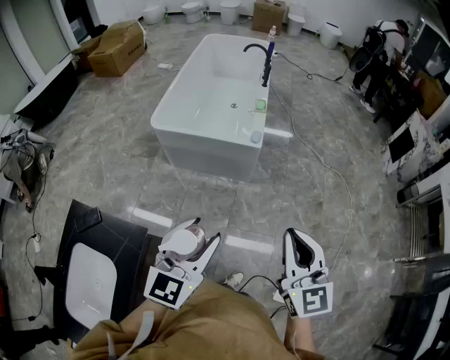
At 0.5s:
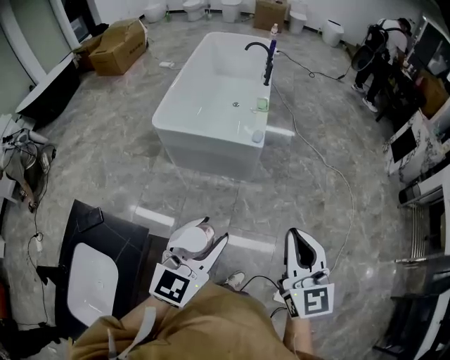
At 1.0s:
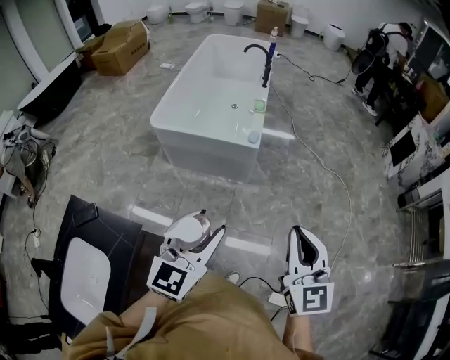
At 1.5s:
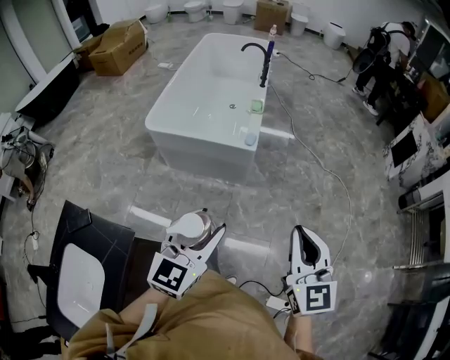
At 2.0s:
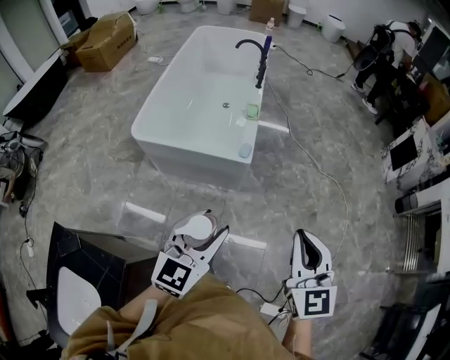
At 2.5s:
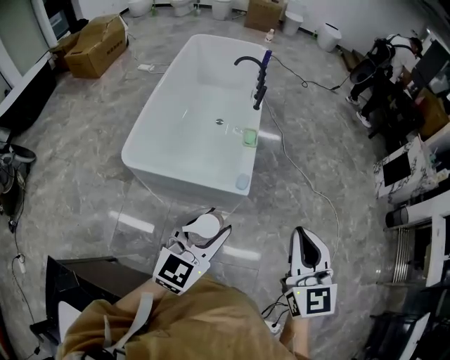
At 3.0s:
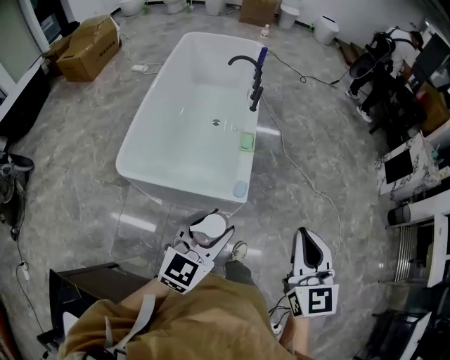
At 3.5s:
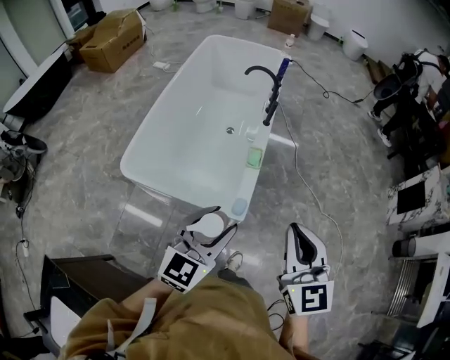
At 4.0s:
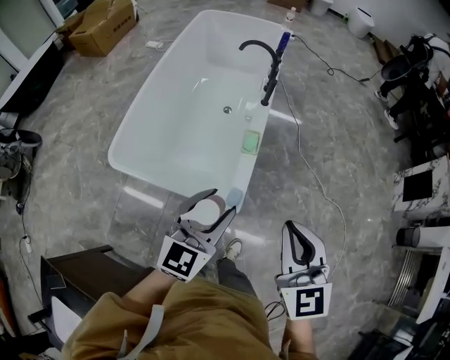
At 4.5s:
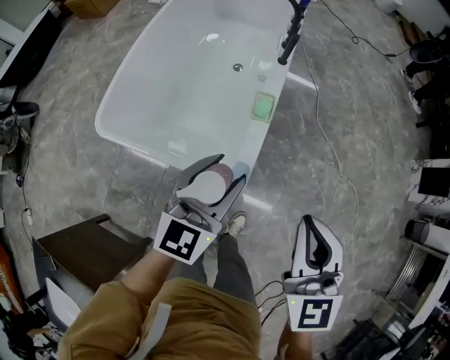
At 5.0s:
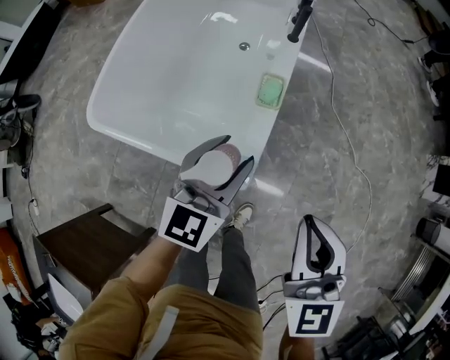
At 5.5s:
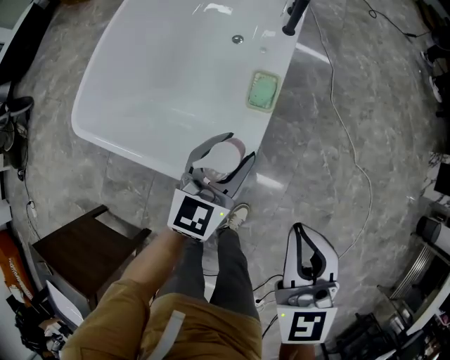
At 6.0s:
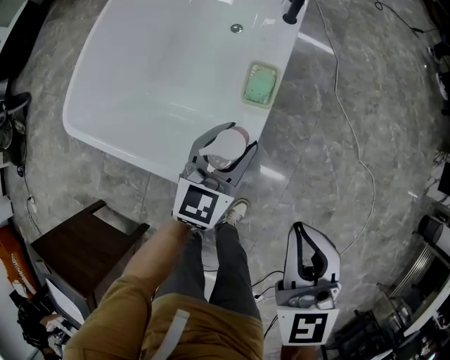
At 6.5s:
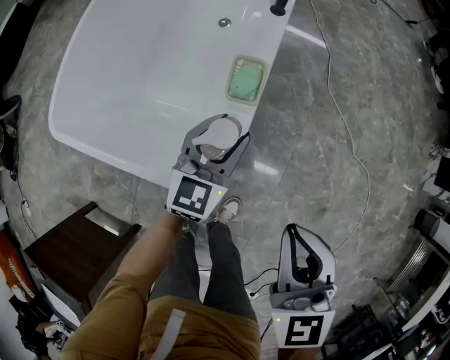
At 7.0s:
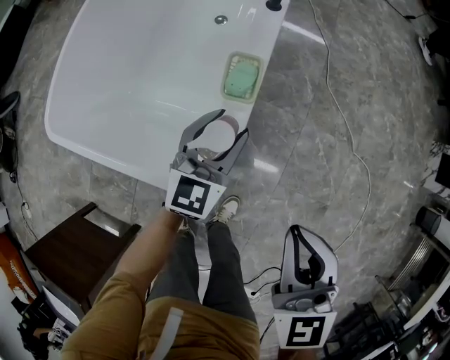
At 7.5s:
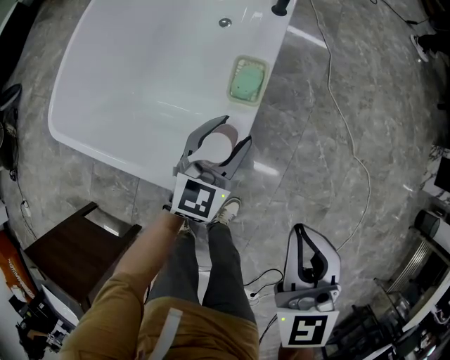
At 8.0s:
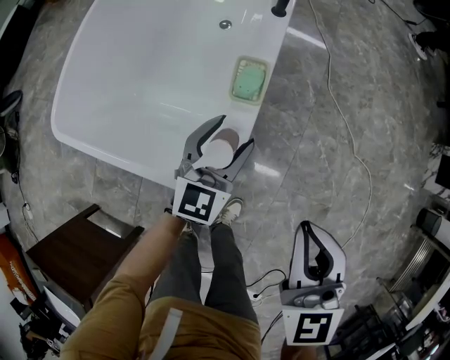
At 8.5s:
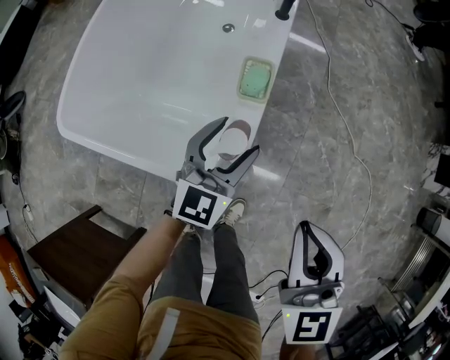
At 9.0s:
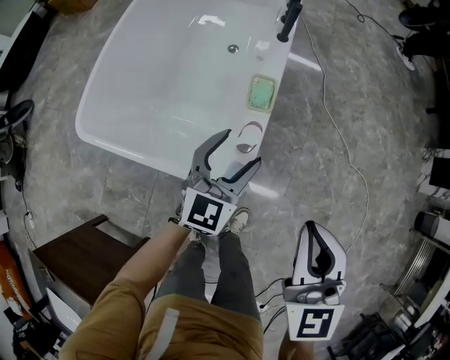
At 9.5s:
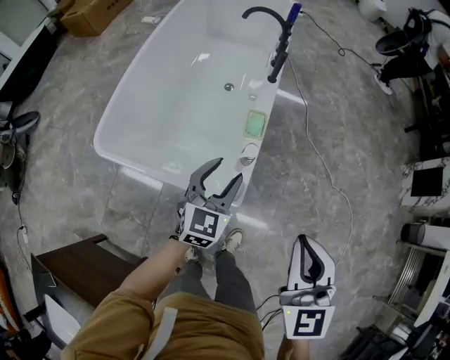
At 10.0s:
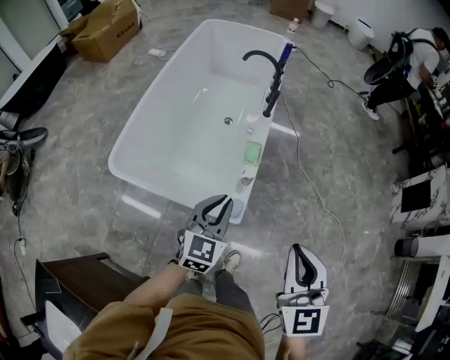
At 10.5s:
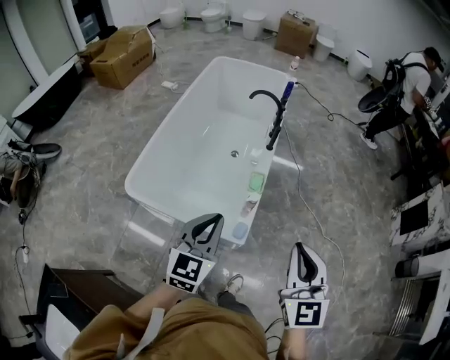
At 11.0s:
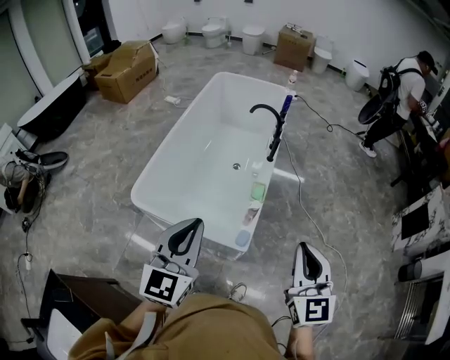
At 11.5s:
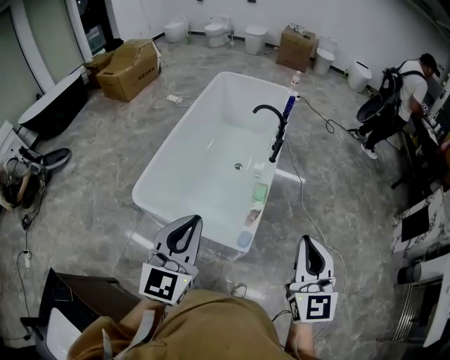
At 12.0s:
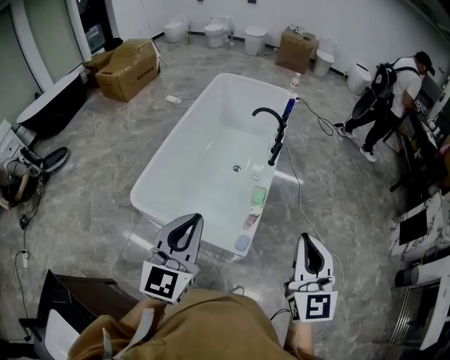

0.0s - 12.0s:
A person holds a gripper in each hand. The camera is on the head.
0.0s - 2.0s: The two grippers go approximately 20 cm forward.
2.0s - 4.0s: Both grippers move forward, approximately 40 cm.
4.0s - 6.0s: Both grippers travel together downward and forward, roughly 30 cm.
6.0s - 8.0s: The grippers stay close to where they were, moving slightly.
8.0s - 10.0s: Both grippers travel together upward and backward, roughly 30 cm. The left gripper closes up.
10.0s - 12.0s: The left gripper heads upward and to the left, covering some 25 cm, while the right gripper travels upward by some 10 cm.

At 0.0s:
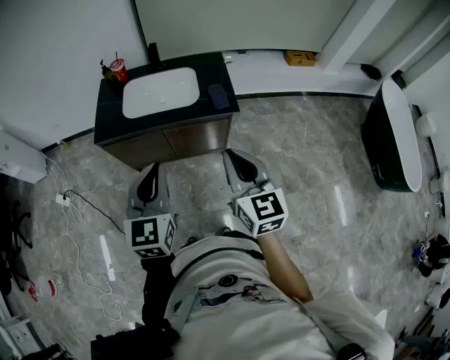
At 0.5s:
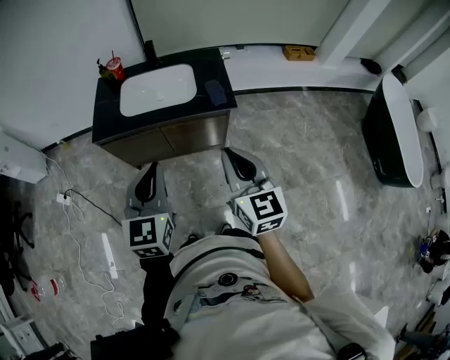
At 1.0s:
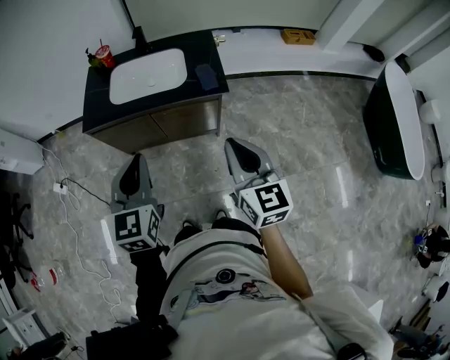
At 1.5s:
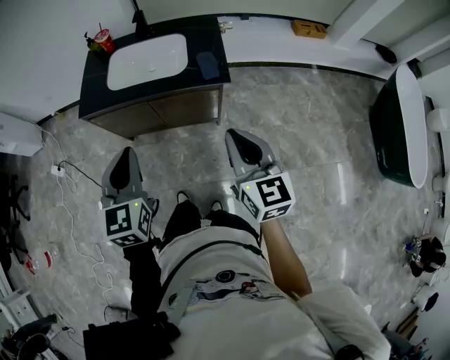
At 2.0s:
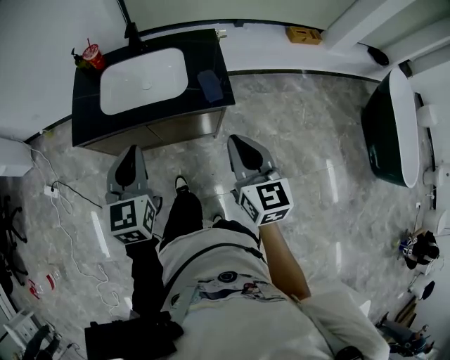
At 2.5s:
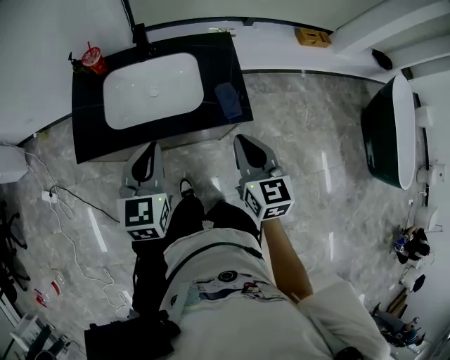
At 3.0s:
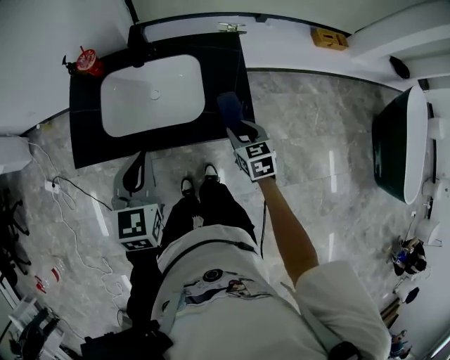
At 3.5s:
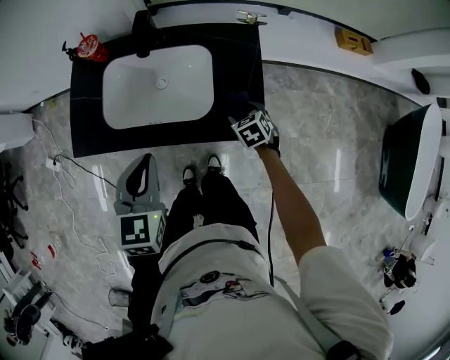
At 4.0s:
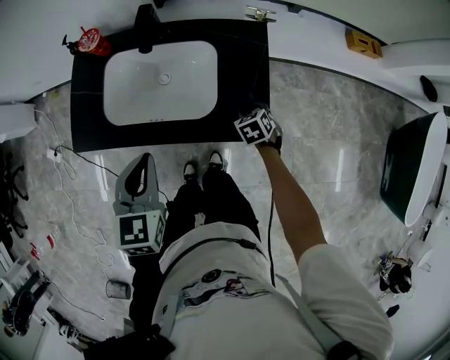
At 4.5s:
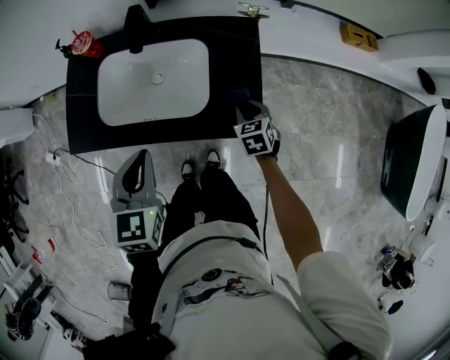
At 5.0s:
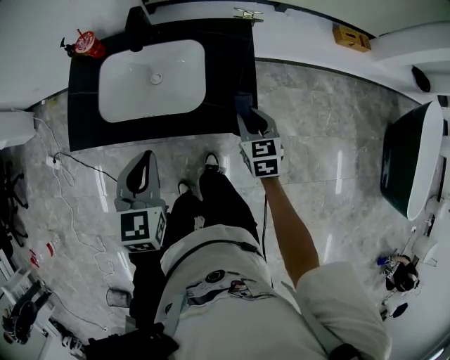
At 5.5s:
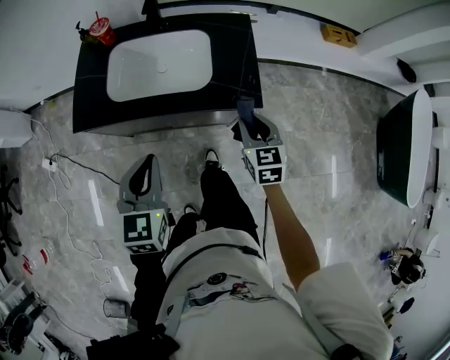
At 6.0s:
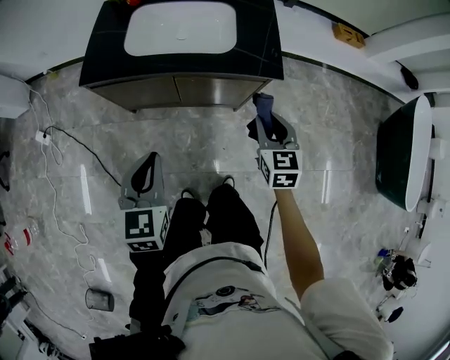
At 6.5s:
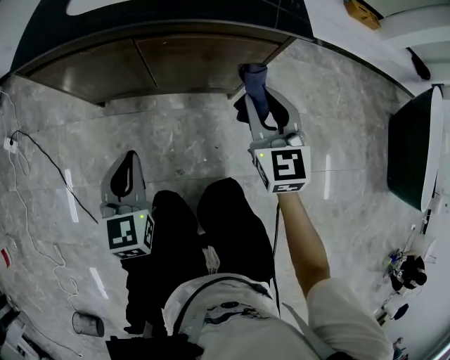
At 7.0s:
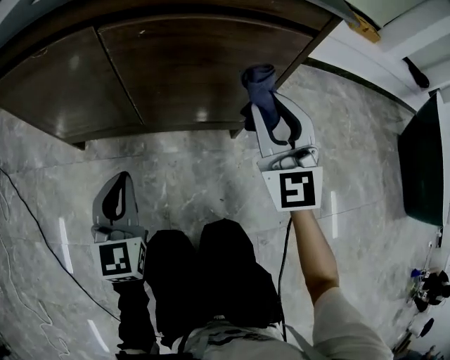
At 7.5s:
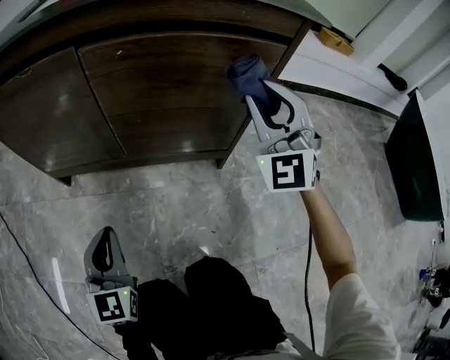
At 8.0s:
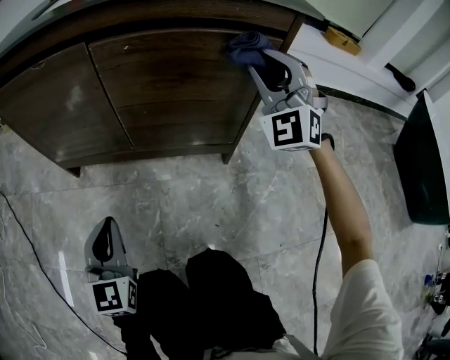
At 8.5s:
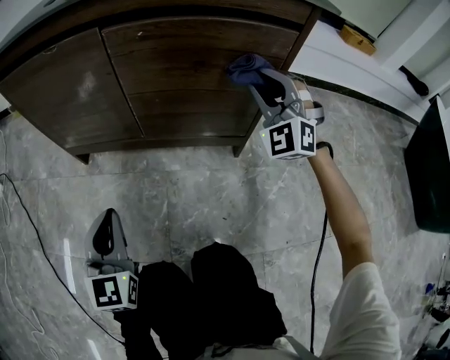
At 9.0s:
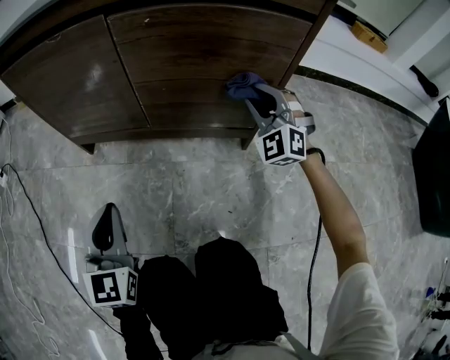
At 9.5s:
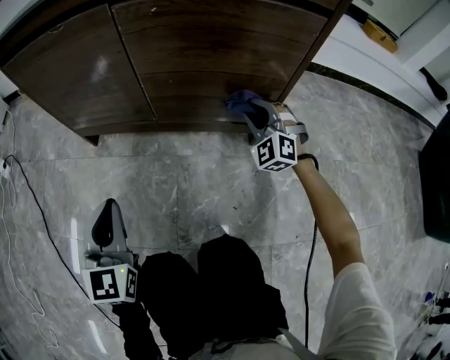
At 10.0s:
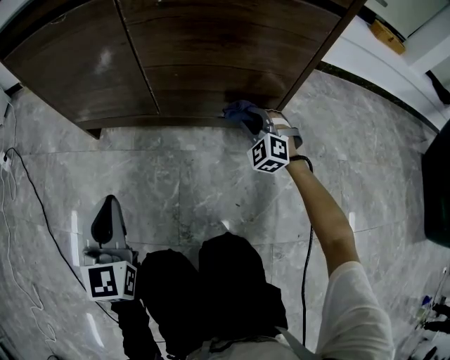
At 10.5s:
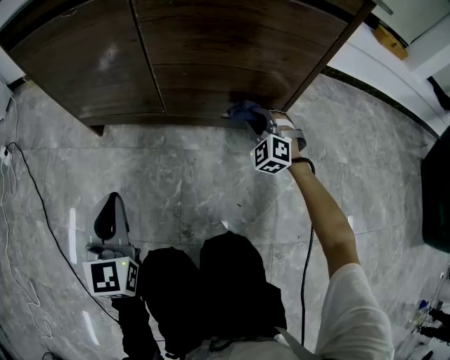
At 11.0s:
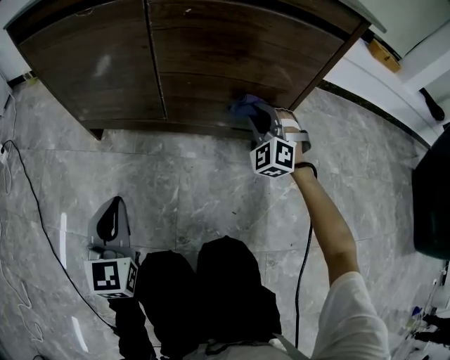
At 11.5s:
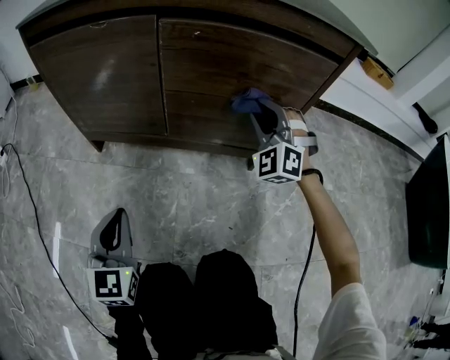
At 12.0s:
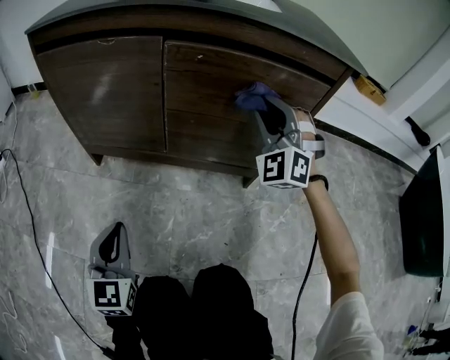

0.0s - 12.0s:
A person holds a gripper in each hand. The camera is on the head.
0.0s - 2.0s: The right gripper goes some 15 cm forward, downward and to the right; the left gripper moves forward and downward, about 15 cm.
2.0s - 4.0s: The right gripper moves downward and forward, about 50 cm, tilts its fingers approximately 50 degrees downward, and opens its fingers; the left gripper heads forward and downward, covering about 20 cm.
4.0s - 6.0s: The right gripper is displaced backward and upward by some 30 cm, and points its fingers roughly 30 degrees further upward; the left gripper is displaced backward by some 25 cm.
6.0s - 8.0s: The left gripper goes approximately 50 cm downward, and changes its angle by about 20 degrees, while the right gripper goes approximately 30 cm downward and forward, and twists some 60 degrees counterclockwise, seen from behind.
8.0s - 10.0s: The right gripper heads downward, covering roughly 35 cm, and angles its fingers downward, by roughly 30 degrees.
10.0s - 12.0s: The right gripper heads upward, covering approximately 30 cm, and changes its angle by some 30 degrees.

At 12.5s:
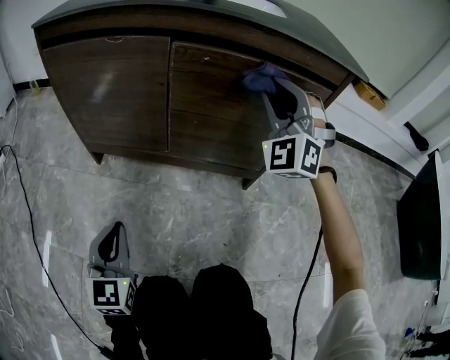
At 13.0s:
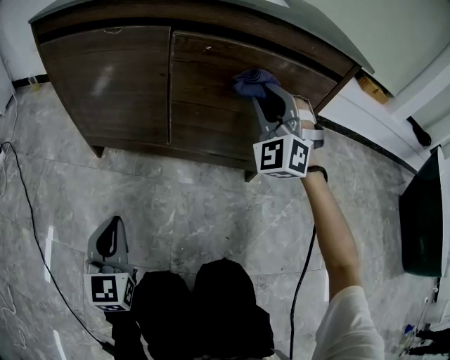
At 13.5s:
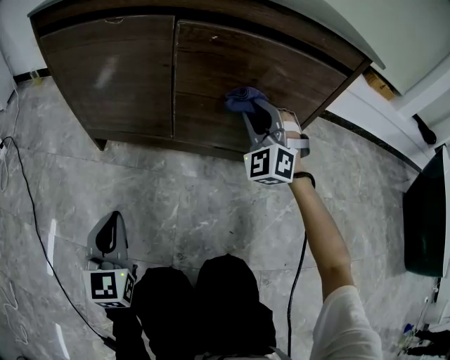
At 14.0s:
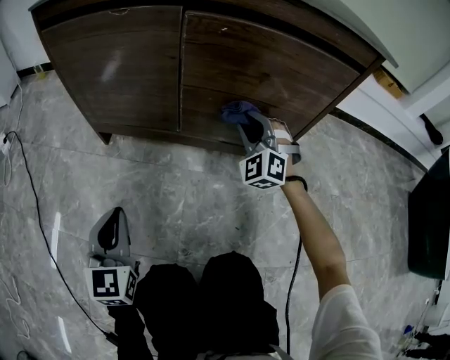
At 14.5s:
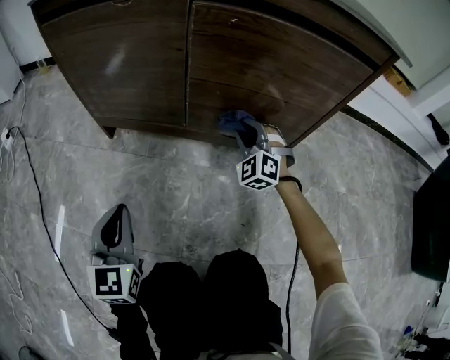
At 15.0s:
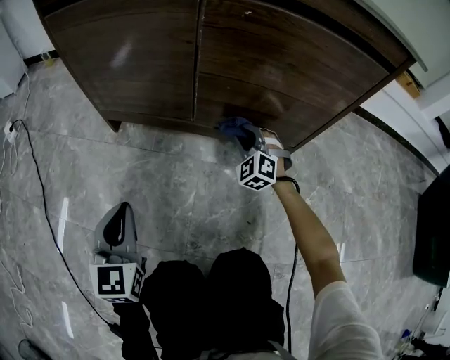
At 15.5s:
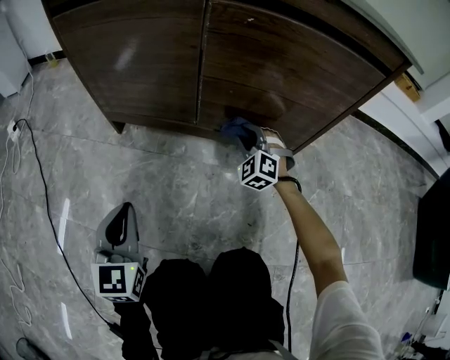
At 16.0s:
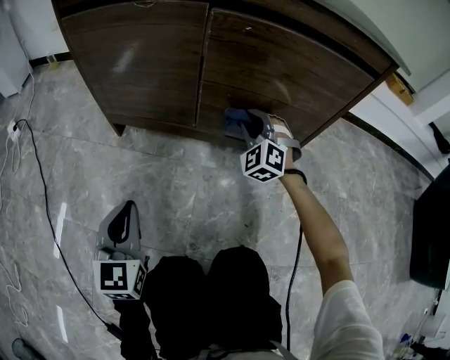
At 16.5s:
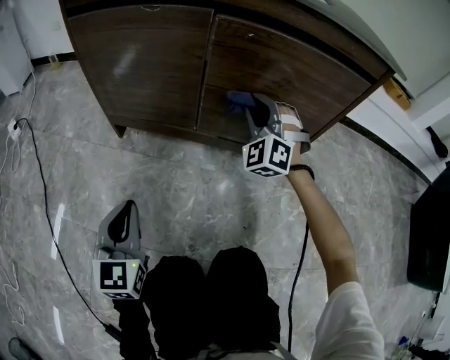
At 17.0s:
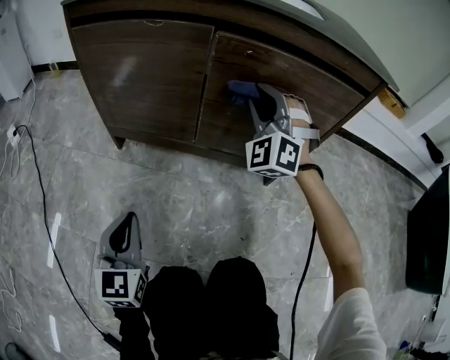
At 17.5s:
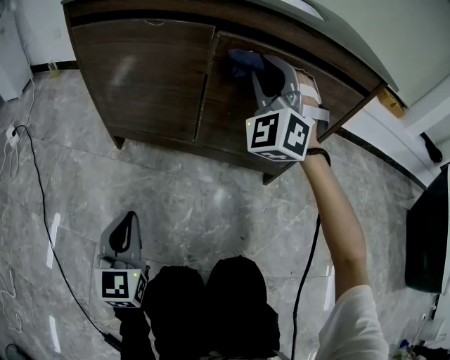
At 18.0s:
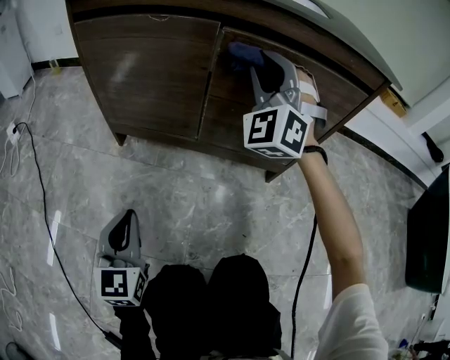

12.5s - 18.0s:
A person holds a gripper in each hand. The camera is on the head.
12.5s - 14.5s: The right gripper shifts roughly 30 cm downward, and turns by some 30 degrees.
14.5s - 16.0s: The right gripper changes place by approximately 5 cm.
16.0s - 18.0s: The right gripper shifts roughly 25 cm upward, and rotates approximately 30 degrees.
